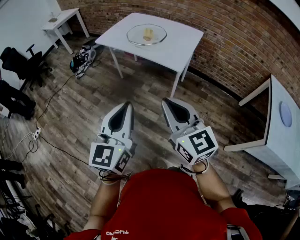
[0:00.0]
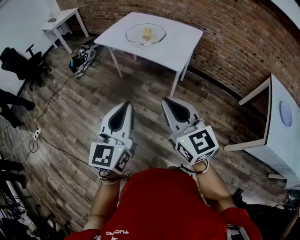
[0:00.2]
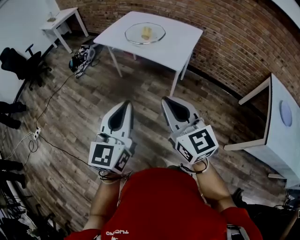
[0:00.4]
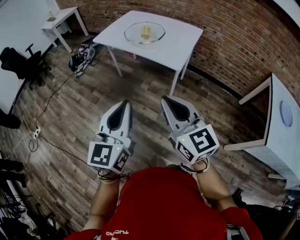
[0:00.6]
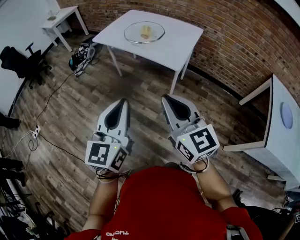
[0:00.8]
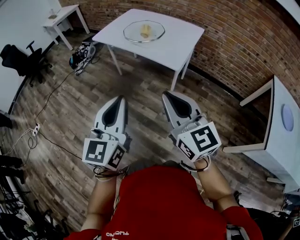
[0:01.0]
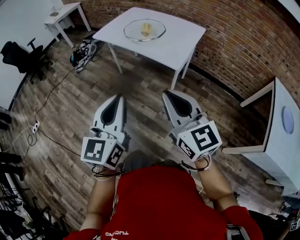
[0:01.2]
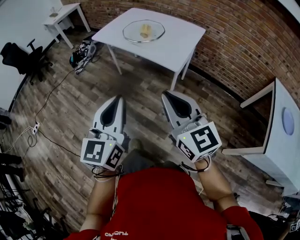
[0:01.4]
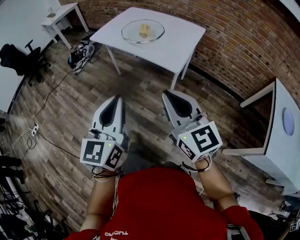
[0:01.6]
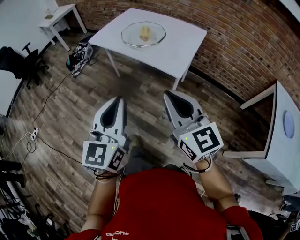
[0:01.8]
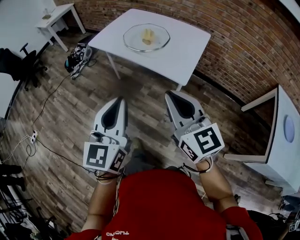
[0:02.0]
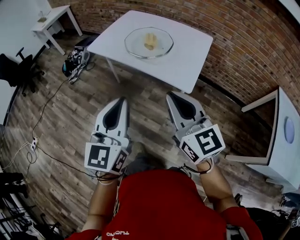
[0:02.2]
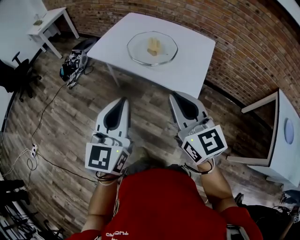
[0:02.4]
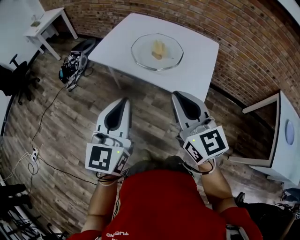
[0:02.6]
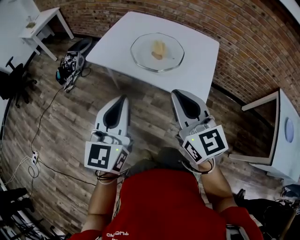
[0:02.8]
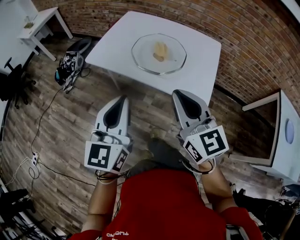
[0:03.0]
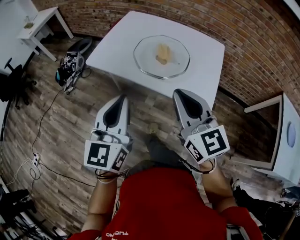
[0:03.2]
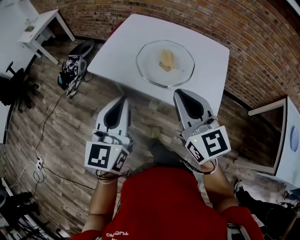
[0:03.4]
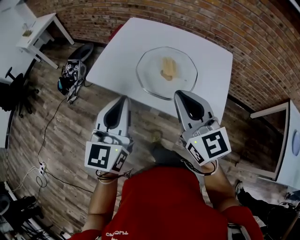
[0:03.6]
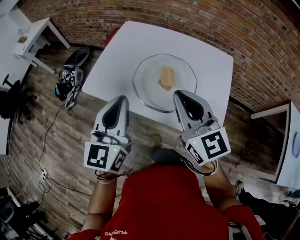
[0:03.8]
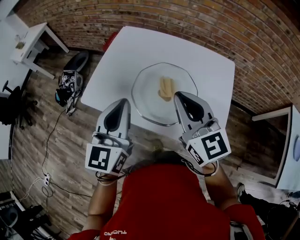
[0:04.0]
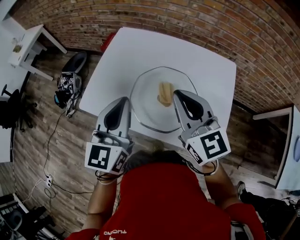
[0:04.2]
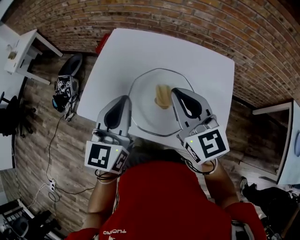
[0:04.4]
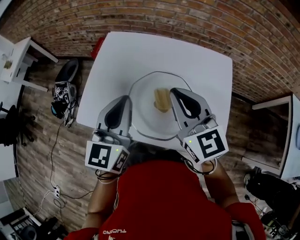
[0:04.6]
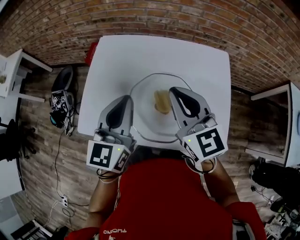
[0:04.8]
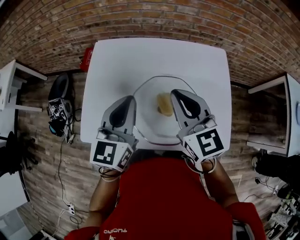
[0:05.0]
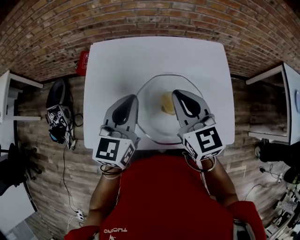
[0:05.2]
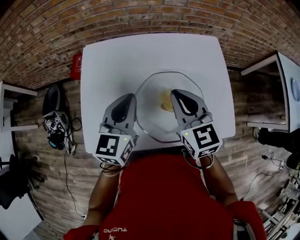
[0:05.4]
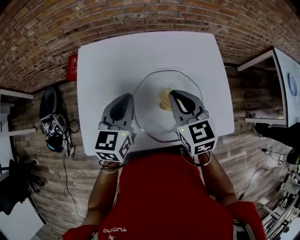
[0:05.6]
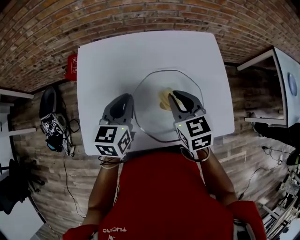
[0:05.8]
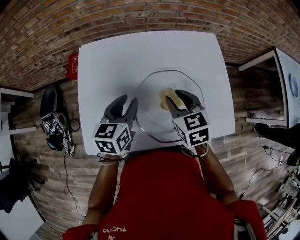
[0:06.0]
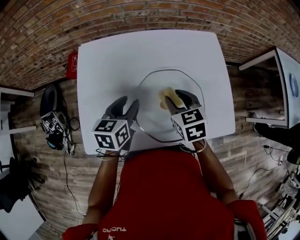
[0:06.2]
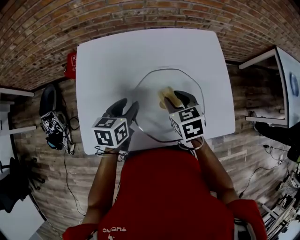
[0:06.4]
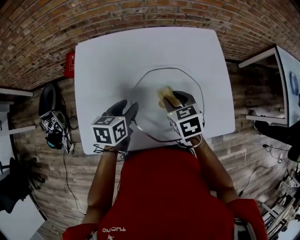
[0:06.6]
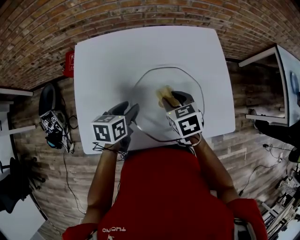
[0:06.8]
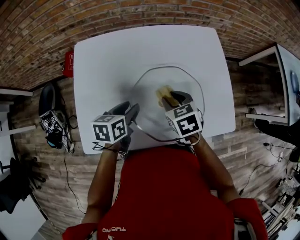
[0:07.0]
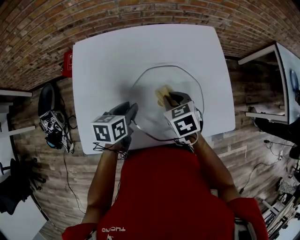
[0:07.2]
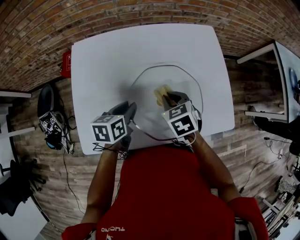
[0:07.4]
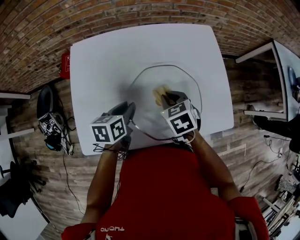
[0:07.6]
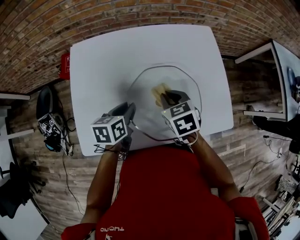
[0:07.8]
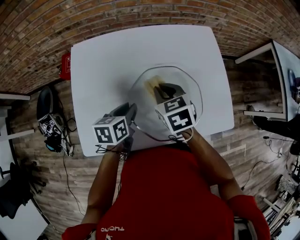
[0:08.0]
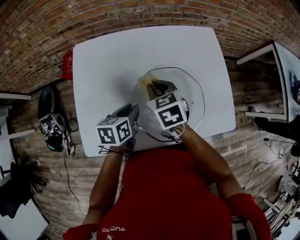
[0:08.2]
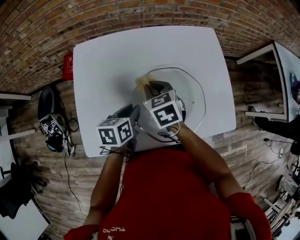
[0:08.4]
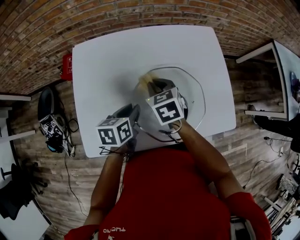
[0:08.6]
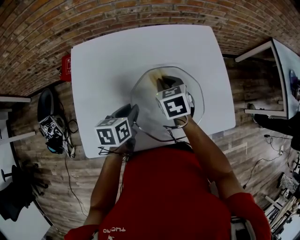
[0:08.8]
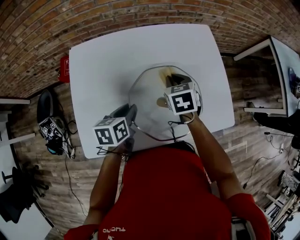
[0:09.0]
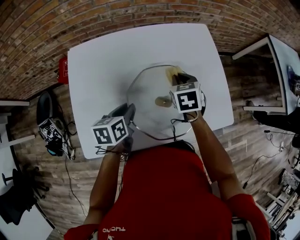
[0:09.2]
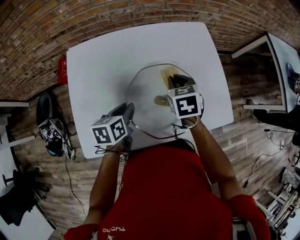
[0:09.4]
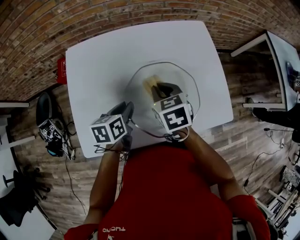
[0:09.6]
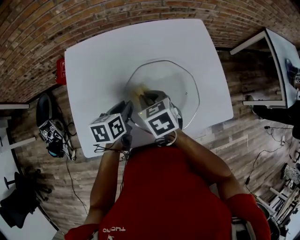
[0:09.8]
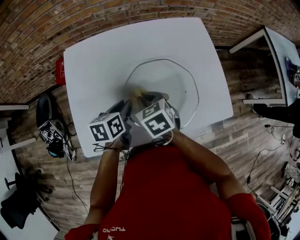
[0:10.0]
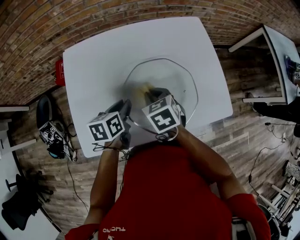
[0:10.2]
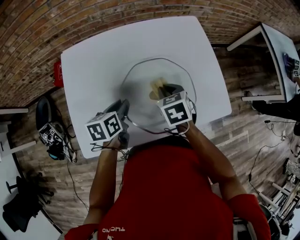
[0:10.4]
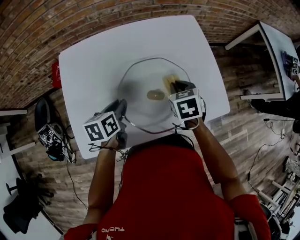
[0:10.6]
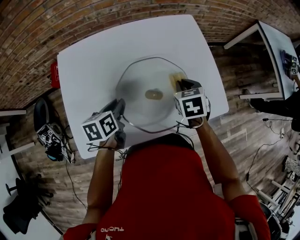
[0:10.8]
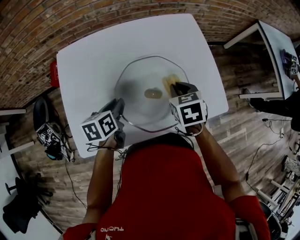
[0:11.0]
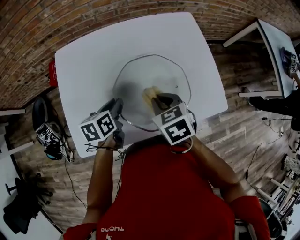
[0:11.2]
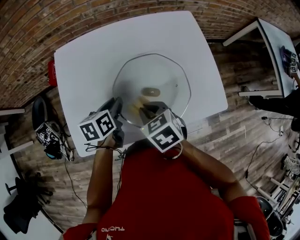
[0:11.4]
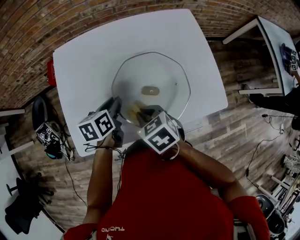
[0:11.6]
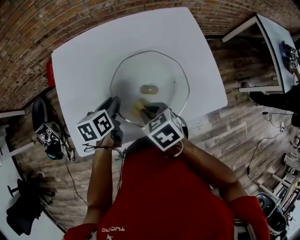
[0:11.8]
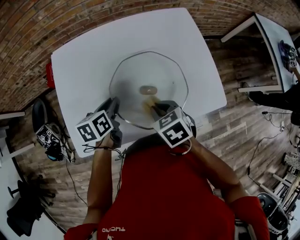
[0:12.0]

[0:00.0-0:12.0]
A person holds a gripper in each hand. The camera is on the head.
0:00.0 to 0:01.6: The left gripper moves forward, some 5 cm; the right gripper moves forward and to the right, roughly 10 cm.
0:01.6 to 0:03.0: Both grippers move forward, roughly 35 cm.
0:03.0 to 0:04.4: The two grippers go roughly 35 cm forward.
0:04.4 to 0:06.0: The grippers both shift downward by roughly 15 cm. The right gripper angles its fingers downward, by some 30 degrees, and opens up, while the left gripper changes its angle by approximately 40 degrees, and opens.
0:06.0 to 0:07.6: Both grippers travel together downward, roughly 10 cm. The left gripper swivels roughly 20 degrees.
0:07.6 to 0:09.0: The right gripper heads forward, covering about 10 cm, and reaches approximately 10 cm to the left, then returns.
0:09.0 to 0:10.4: The right gripper moves backward, some 10 cm, and goes to the left and returns, roughly 10 cm each way.
0:10.4 to 0:12.0: The right gripper goes left and right, approximately 15 cm each way, reversing 2 times.

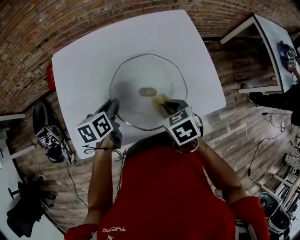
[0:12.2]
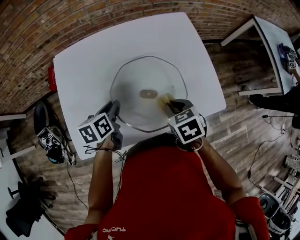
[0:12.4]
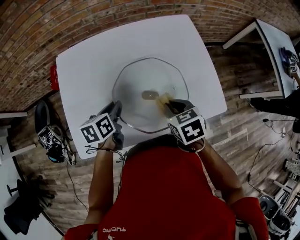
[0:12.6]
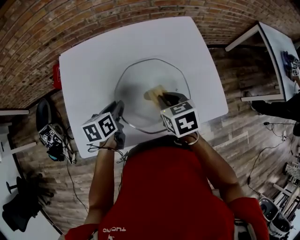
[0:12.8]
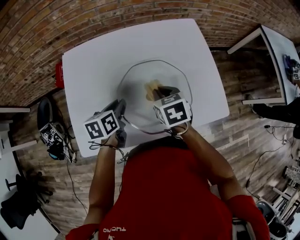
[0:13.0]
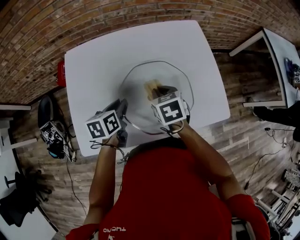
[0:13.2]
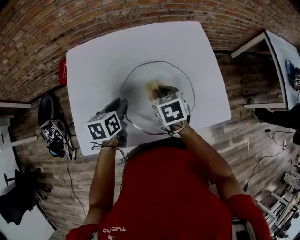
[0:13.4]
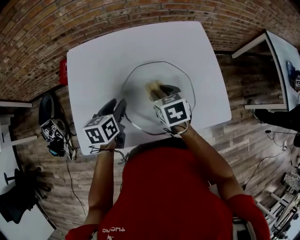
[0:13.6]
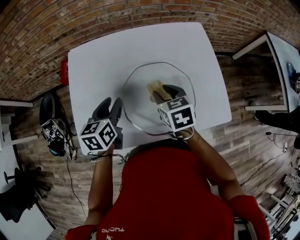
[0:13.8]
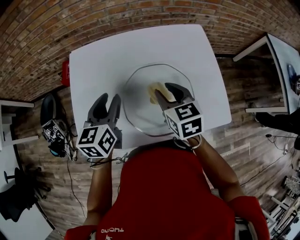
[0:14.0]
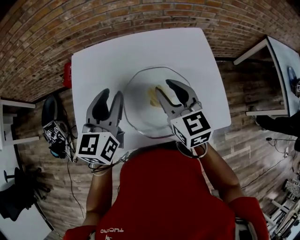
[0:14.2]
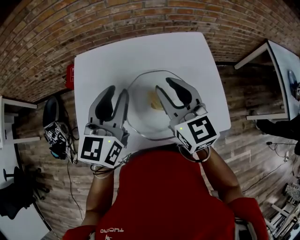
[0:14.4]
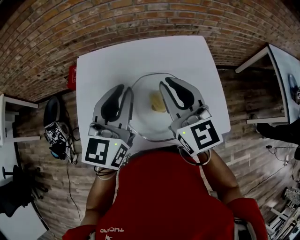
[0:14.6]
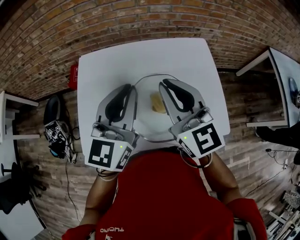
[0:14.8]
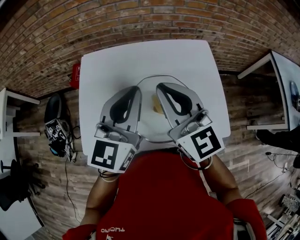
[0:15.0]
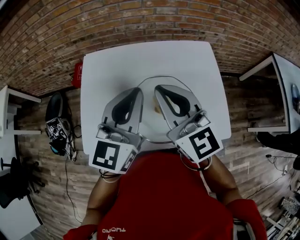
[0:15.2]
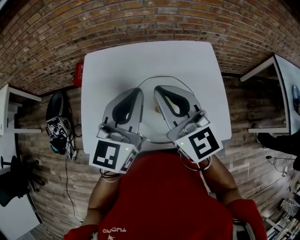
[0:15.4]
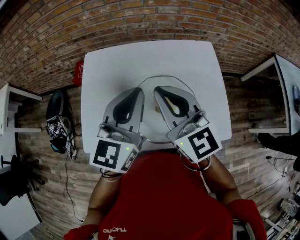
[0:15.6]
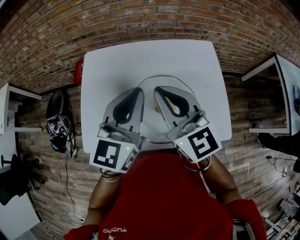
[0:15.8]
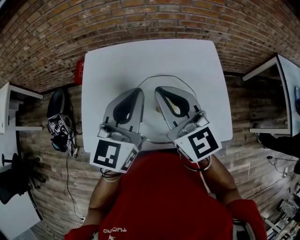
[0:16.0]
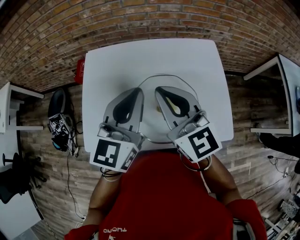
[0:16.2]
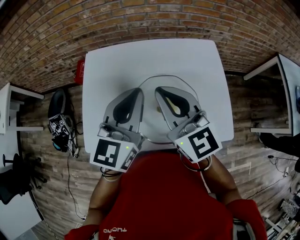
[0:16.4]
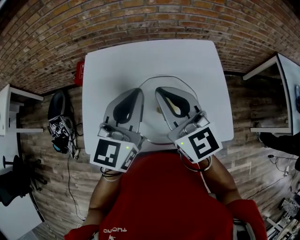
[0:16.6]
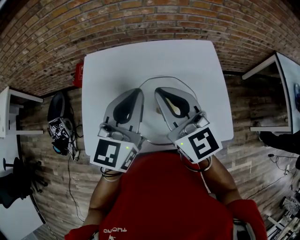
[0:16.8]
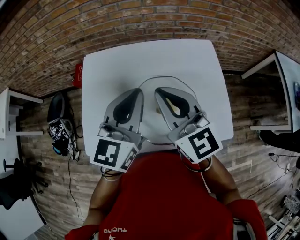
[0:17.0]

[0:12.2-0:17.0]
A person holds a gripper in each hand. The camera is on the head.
0:12.2 to 0:13.8: The right gripper travels forward by approximately 10 cm, and opens, while the left gripper heads upward, covering roughly 5 cm.
0:13.8 to 0:15.4: The left gripper heads upward and to the right, covering roughly 25 cm, points its fingers about 30 degrees further upward, and closes its fingers. Meanwhile the right gripper heads upward, covering approximately 25 cm, points its fingers some 50 degrees further upward, and closes.
0:15.4 to 0:17.0: There are only small adjustments of the grippers.

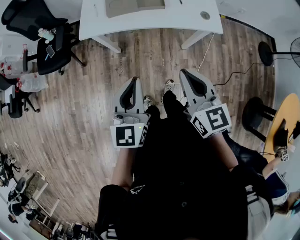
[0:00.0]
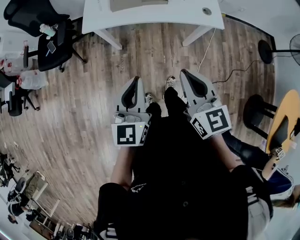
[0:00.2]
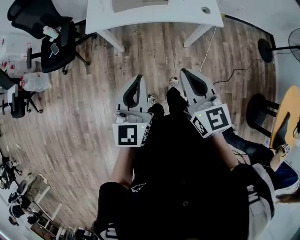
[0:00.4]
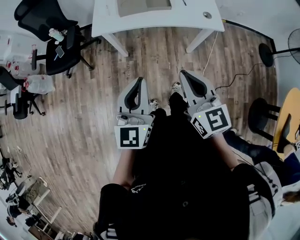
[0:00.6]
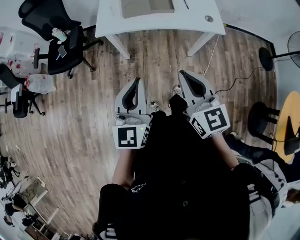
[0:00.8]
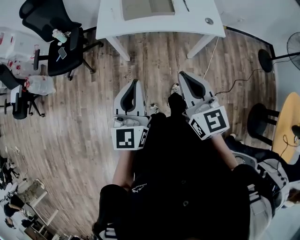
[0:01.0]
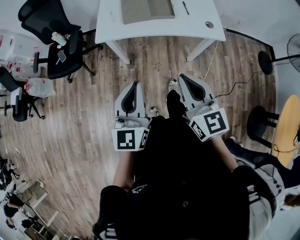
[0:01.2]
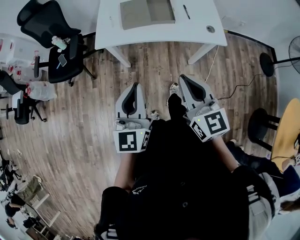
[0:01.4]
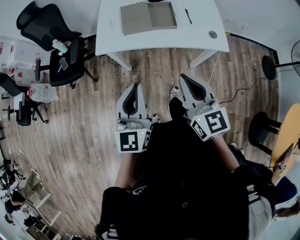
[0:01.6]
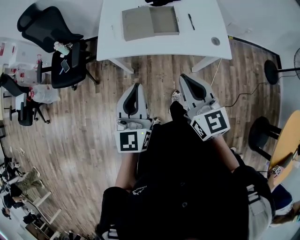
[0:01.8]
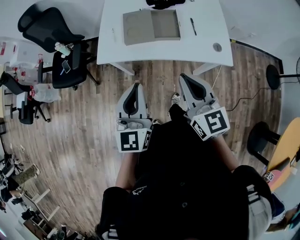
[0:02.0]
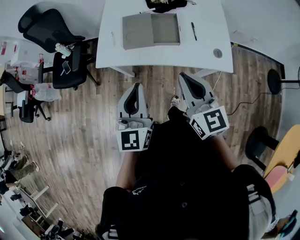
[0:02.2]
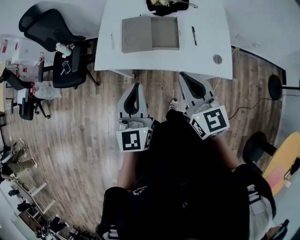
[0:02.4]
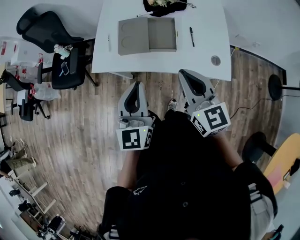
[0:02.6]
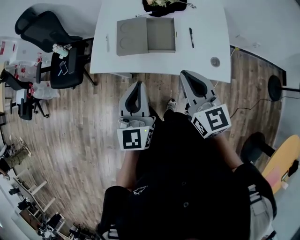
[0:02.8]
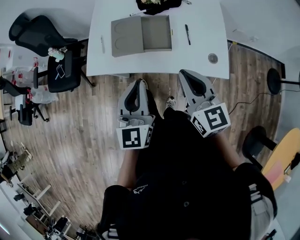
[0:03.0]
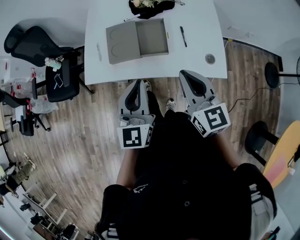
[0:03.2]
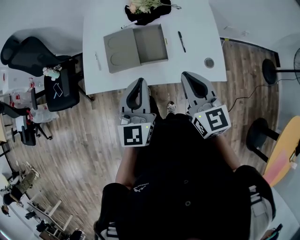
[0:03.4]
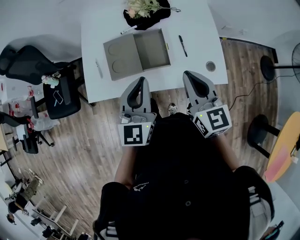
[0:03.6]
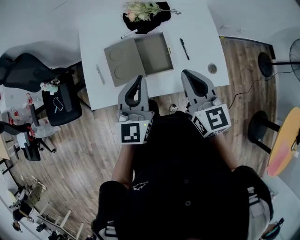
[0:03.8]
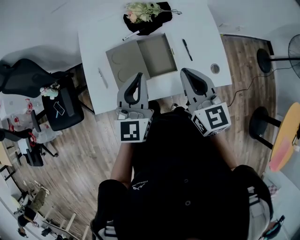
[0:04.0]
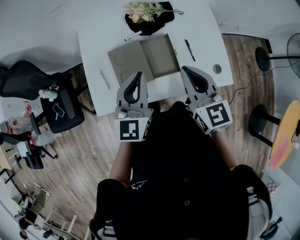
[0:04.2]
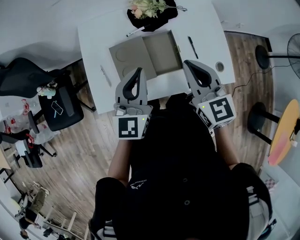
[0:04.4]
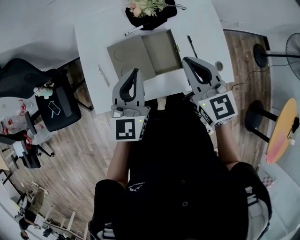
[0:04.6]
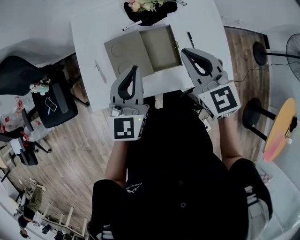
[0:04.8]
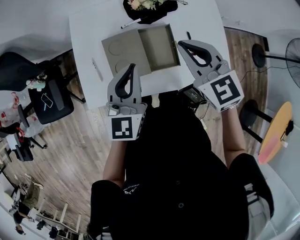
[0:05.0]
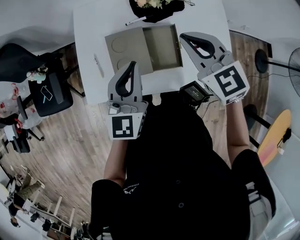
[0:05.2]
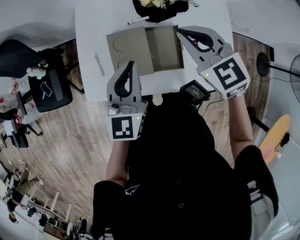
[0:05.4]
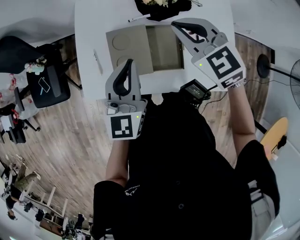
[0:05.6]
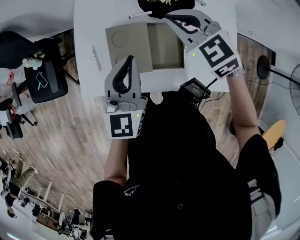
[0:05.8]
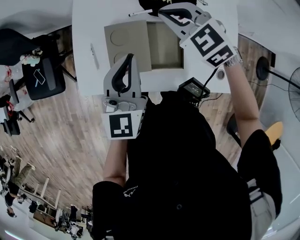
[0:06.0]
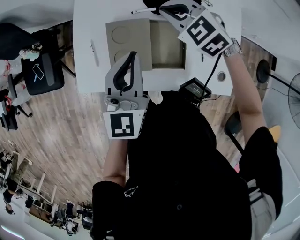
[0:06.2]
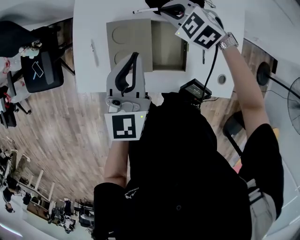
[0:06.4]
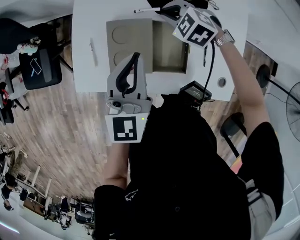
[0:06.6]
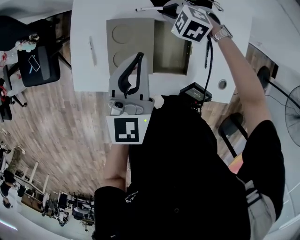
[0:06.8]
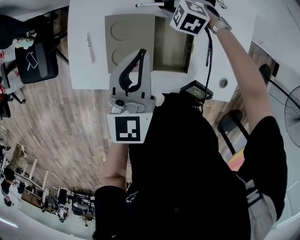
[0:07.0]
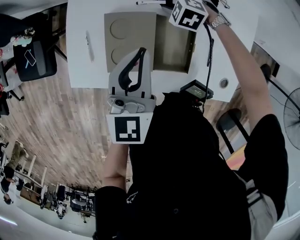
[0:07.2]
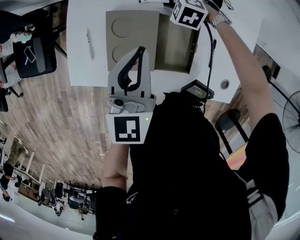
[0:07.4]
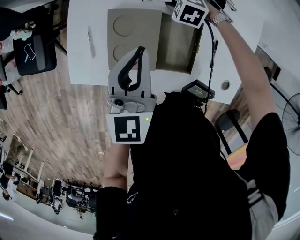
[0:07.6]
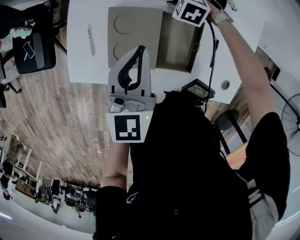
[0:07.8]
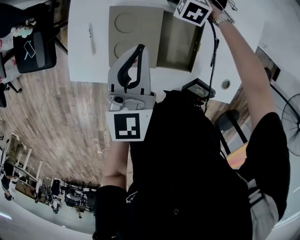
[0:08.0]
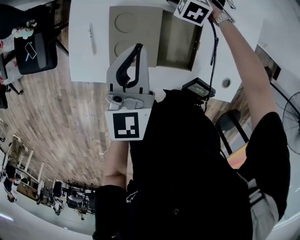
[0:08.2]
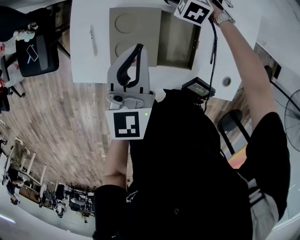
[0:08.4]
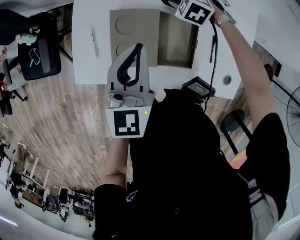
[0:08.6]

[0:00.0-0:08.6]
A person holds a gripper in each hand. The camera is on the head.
0:00.0 to 0:01.4: The grippers both shift to the left by roughly 5 cm.
0:01.4 to 0:02.8: Both grippers move forward and to the right, some 30 cm.
0:02.8 to 0:04.4: The two grippers go some 25 cm forward. The left gripper changes its angle by some 20 degrees.
0:04.4 to 0:05.8: The right gripper moves forward, roughly 15 cm, and changes its angle by some 40 degrees. Meanwhile the left gripper goes some 5 cm forward.
0:05.8 to 0:07.2: The left gripper heads downward, covering about 5 cm. Meanwhile the right gripper shifts approximately 25 cm downward, angles its fingers downward, by roughly 30 degrees, and opens up.
0:07.2 to 0:08.6: There are only small adjustments of the grippers.
